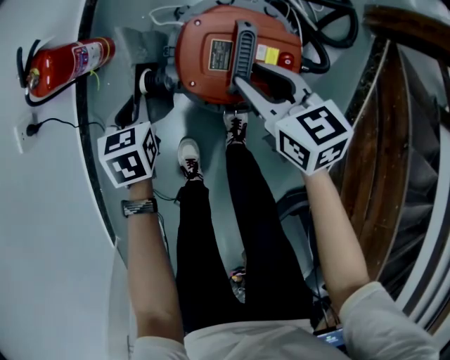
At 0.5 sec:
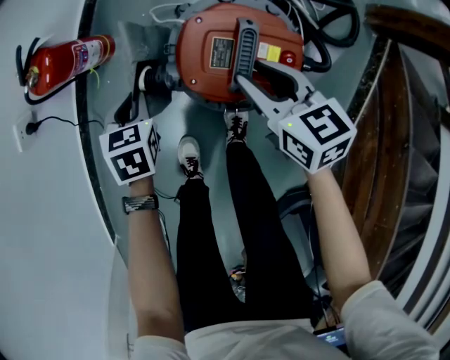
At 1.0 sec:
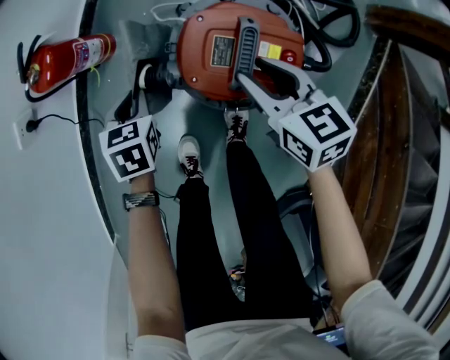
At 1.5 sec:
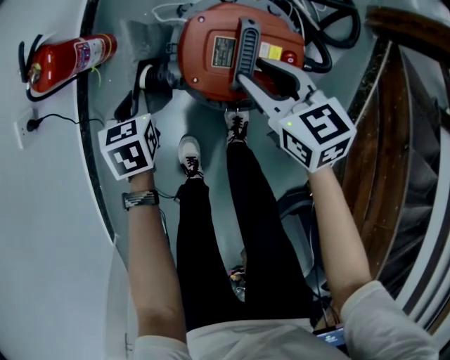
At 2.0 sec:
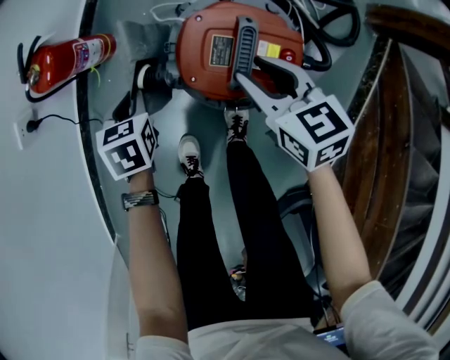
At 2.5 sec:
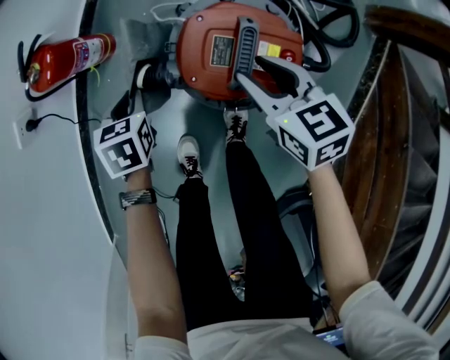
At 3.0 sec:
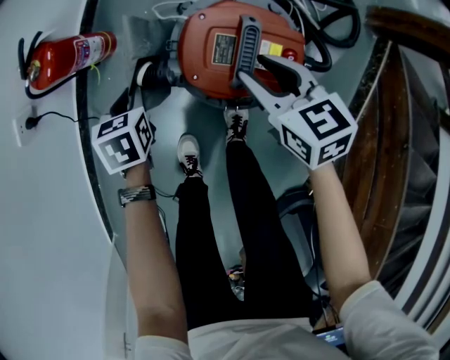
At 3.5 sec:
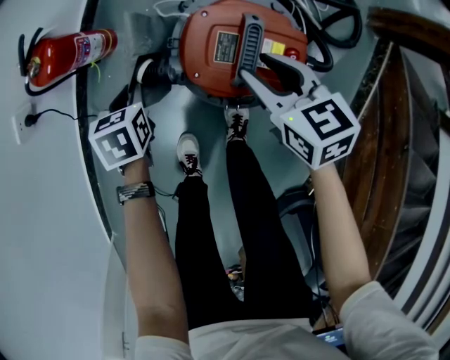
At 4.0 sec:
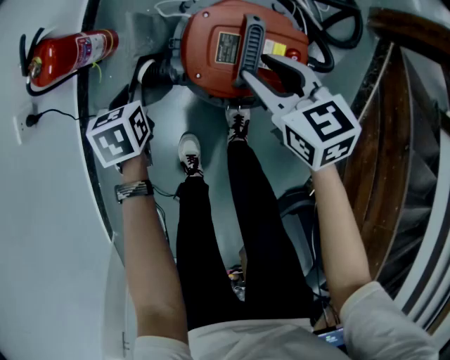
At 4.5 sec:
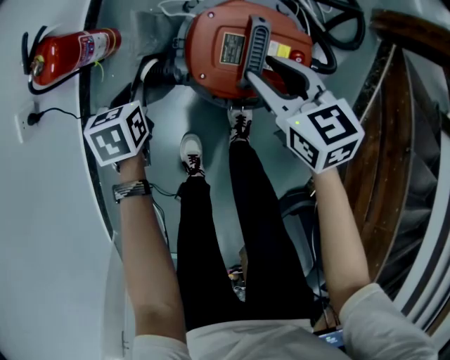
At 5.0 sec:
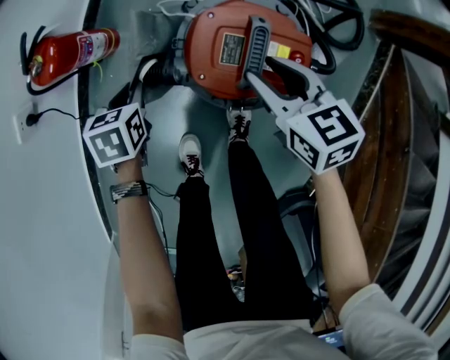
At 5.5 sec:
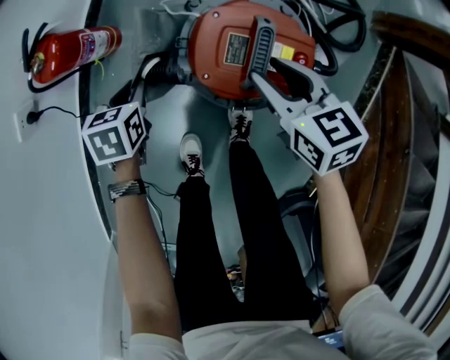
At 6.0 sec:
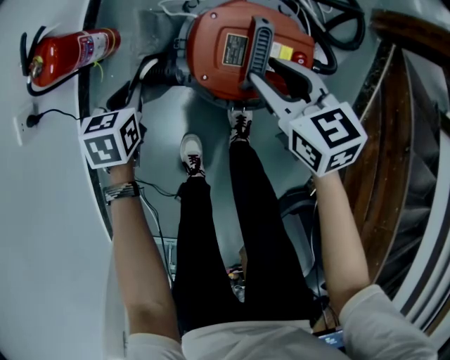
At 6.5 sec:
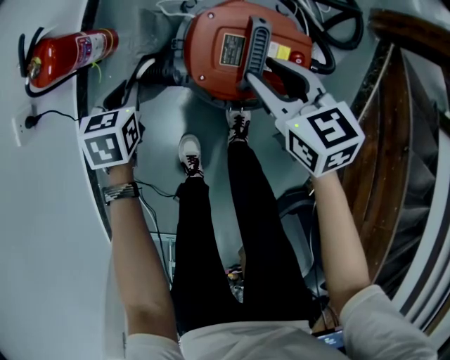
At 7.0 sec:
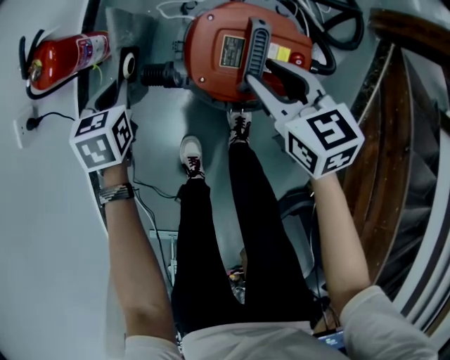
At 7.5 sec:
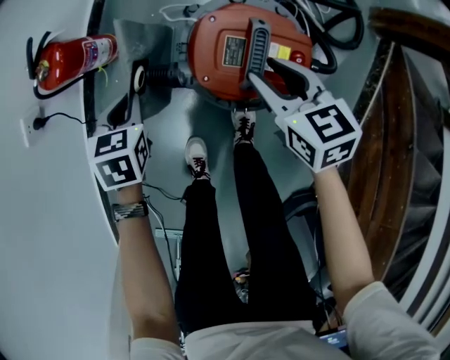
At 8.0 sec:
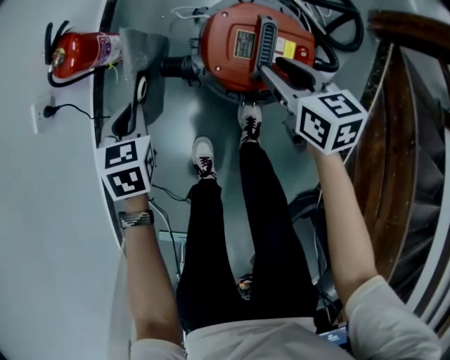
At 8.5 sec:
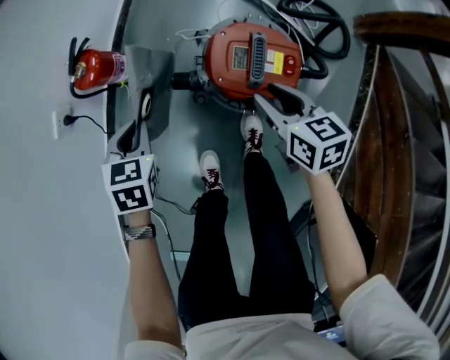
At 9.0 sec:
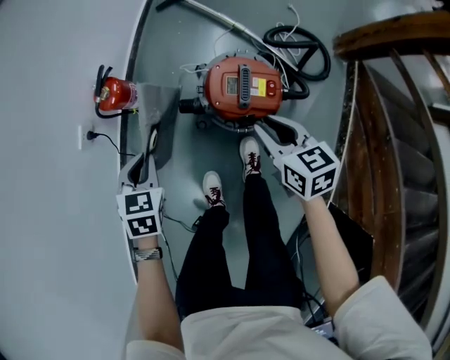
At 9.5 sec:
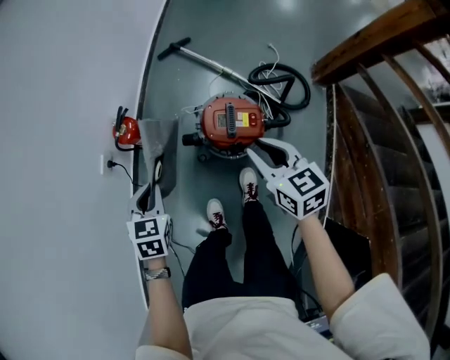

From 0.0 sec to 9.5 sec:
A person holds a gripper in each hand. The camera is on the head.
From 0.0 sec to 7.5 sec: There are only small adjustments of the grippers.
From 7.5 sec to 9.5 sec: Both grippers move upward, roughly 30 cm.

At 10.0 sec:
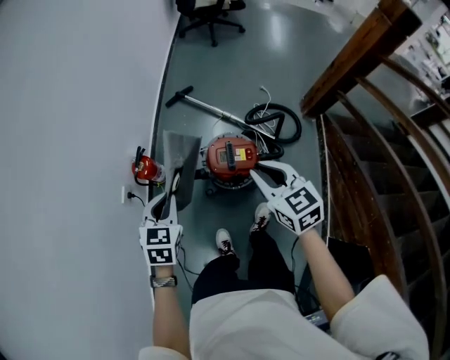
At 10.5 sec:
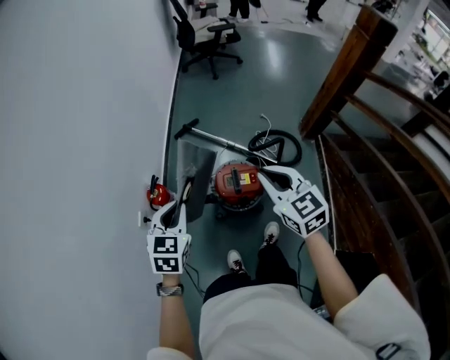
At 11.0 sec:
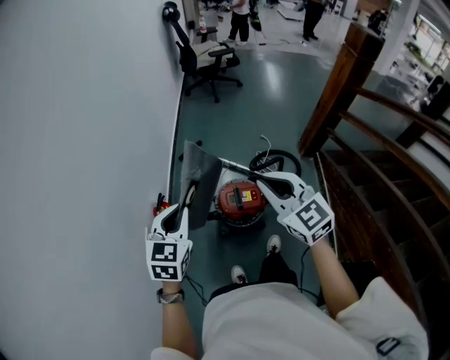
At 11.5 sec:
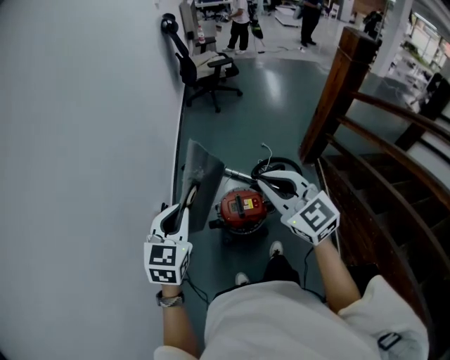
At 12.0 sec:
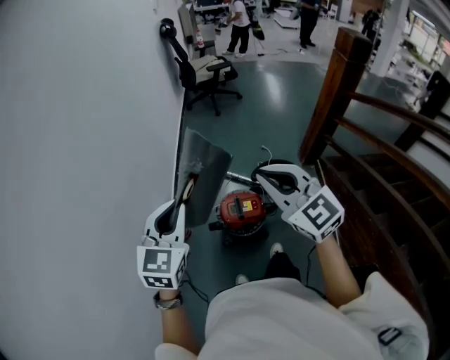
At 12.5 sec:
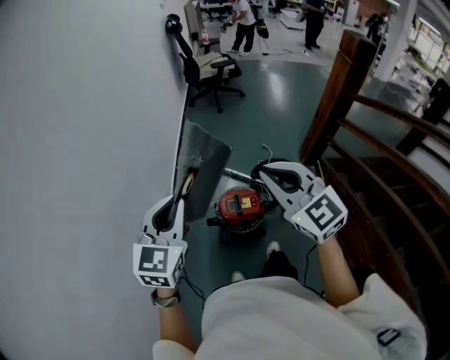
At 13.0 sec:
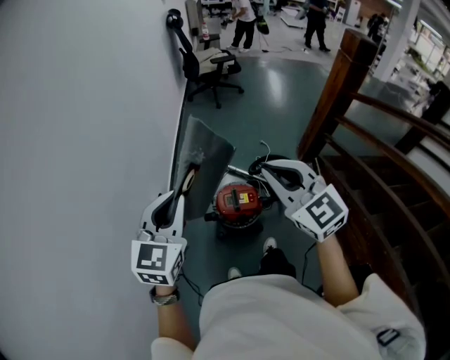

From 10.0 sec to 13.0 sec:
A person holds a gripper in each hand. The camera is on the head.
From 10.0 sec to 11.5 sec: The grippers both shift upward by roughly 25 cm. The right gripper turns by about 30 degrees; the left gripper rotates roughly 20 degrees.
From 11.5 sec to 13.0 sec: The left gripper moves upward, some 10 cm. The right gripper shifts by roughly 5 cm.

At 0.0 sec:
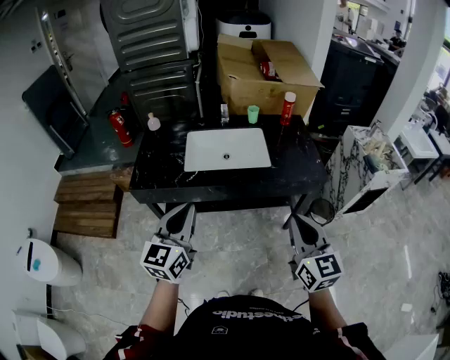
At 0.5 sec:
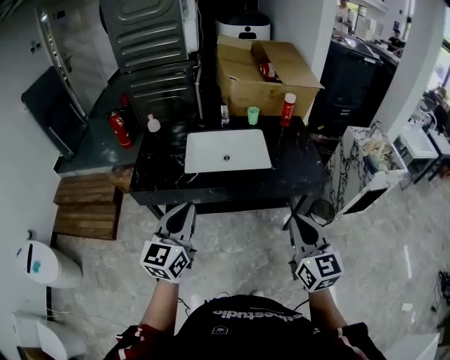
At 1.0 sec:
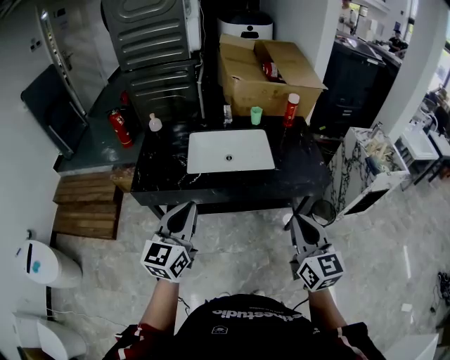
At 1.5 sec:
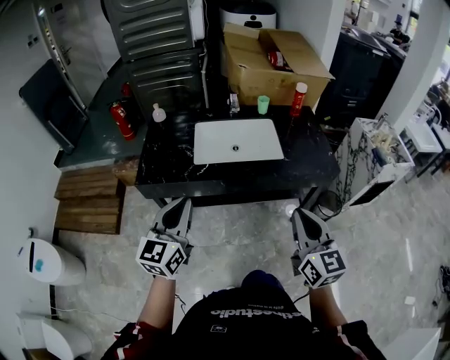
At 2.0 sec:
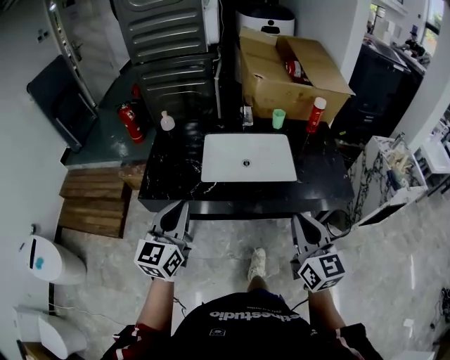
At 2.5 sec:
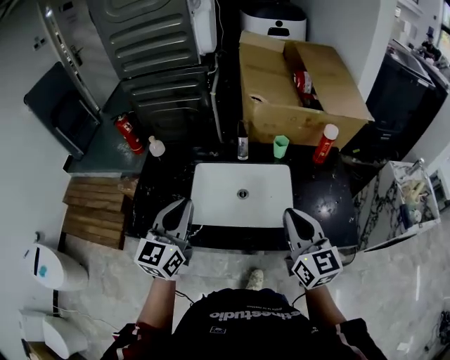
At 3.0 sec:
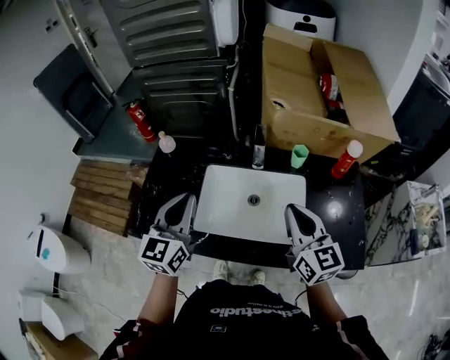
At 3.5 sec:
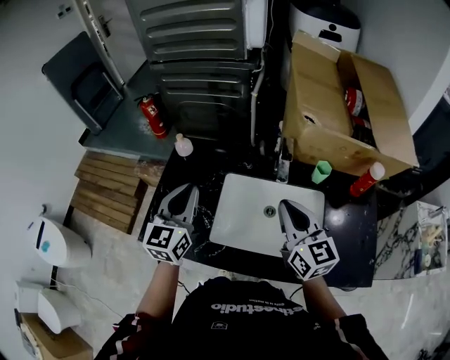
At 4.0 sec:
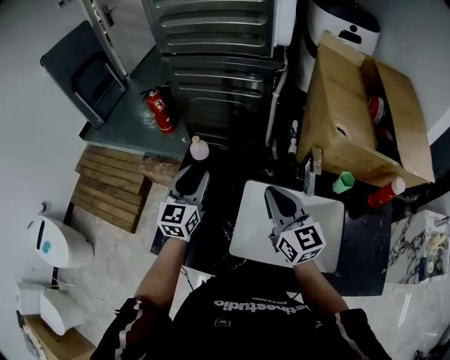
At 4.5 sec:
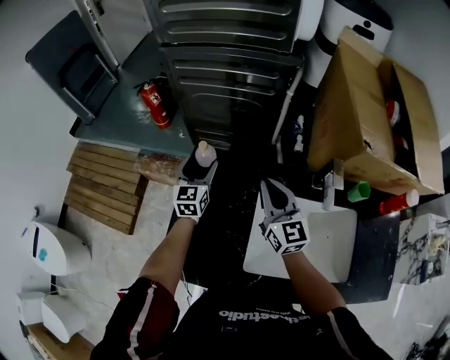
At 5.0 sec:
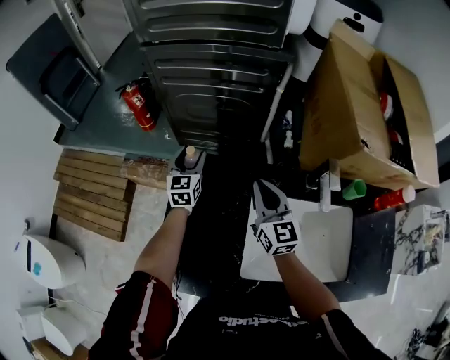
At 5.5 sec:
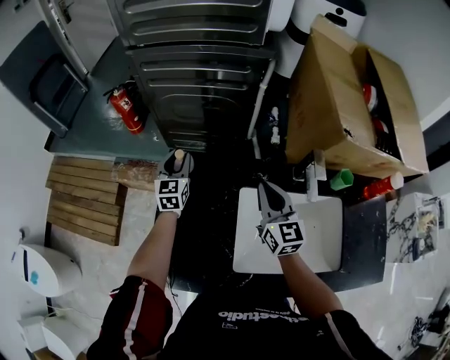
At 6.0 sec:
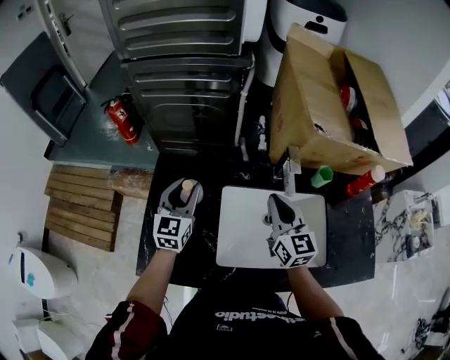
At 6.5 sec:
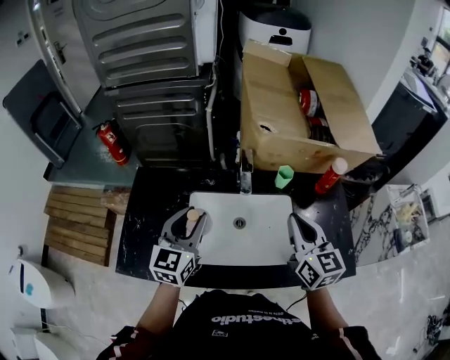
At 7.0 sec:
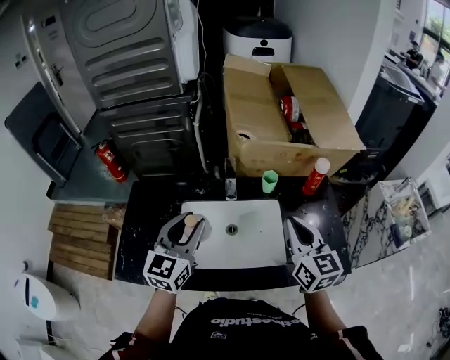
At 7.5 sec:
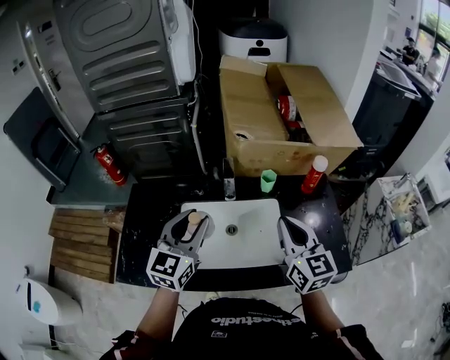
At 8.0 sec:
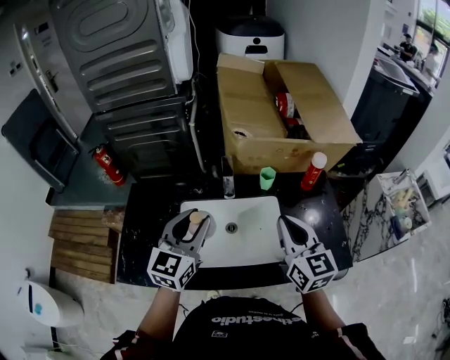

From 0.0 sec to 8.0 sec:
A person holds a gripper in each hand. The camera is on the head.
From 0.0 sec to 2.0 sec: The two grippers go some 15 cm forward and to the left.
From 2.0 sec to 4.0 sec: Both grippers are carried forward, approximately 50 cm. The left gripper opens its fingers. Meanwhile the right gripper swivels approximately 20 degrees.
From 4.0 sec to 6.0 sec: The right gripper travels to the right and downward by roughly 10 cm. The left gripper goes about 5 cm downward, travels forward and back again, approximately 20 cm each way, and opens, then closes again.
From 6.0 sec to 8.0 sec: The right gripper is displaced to the right, backward and upward by some 30 cm, while the left gripper moves to the right, upward and backward, some 30 cm.

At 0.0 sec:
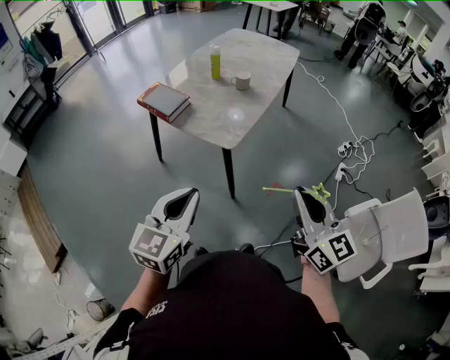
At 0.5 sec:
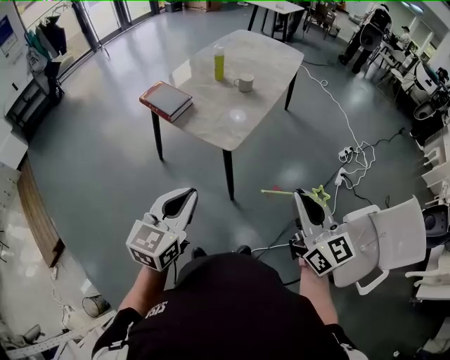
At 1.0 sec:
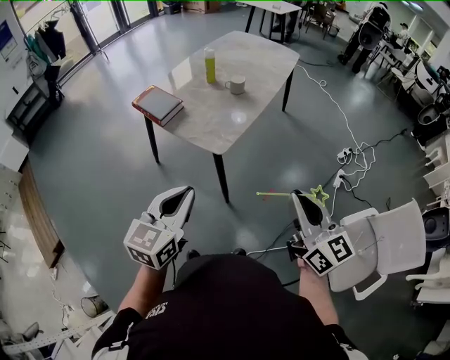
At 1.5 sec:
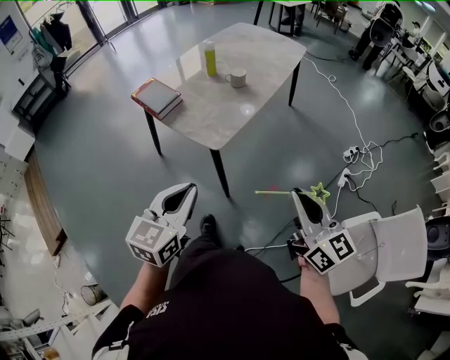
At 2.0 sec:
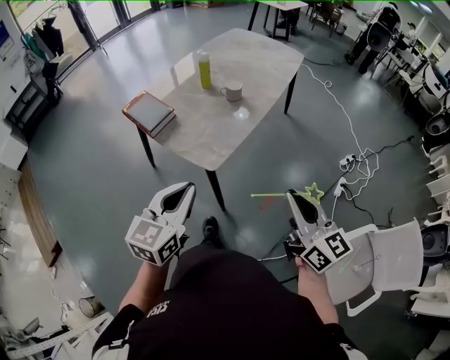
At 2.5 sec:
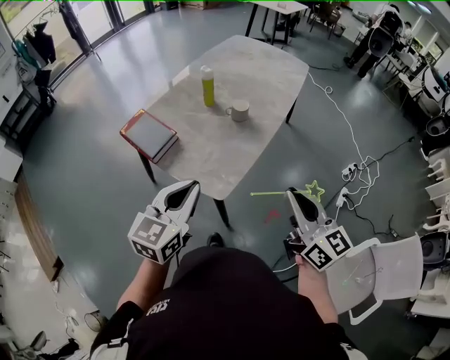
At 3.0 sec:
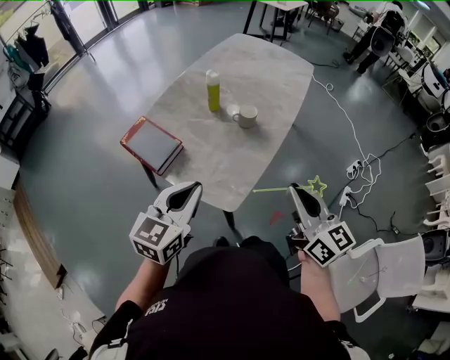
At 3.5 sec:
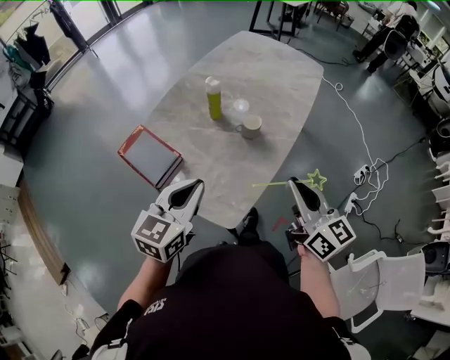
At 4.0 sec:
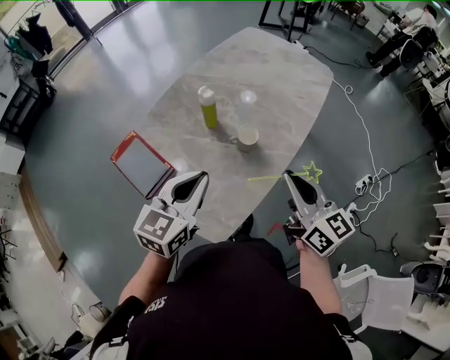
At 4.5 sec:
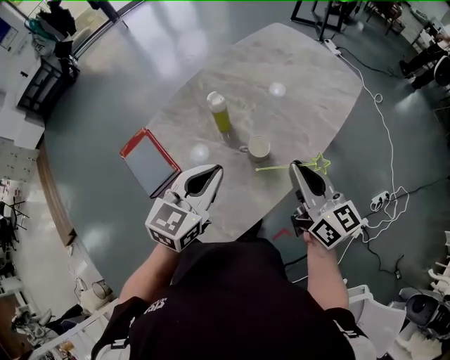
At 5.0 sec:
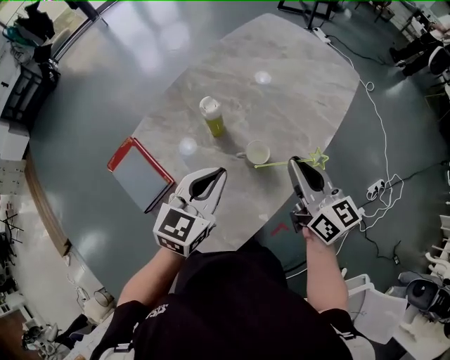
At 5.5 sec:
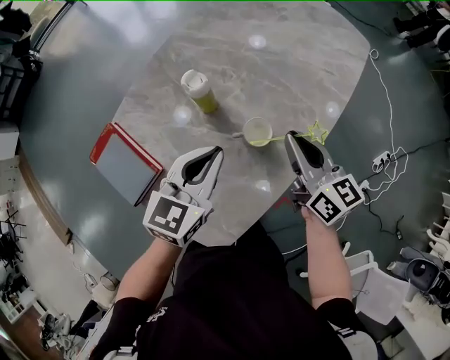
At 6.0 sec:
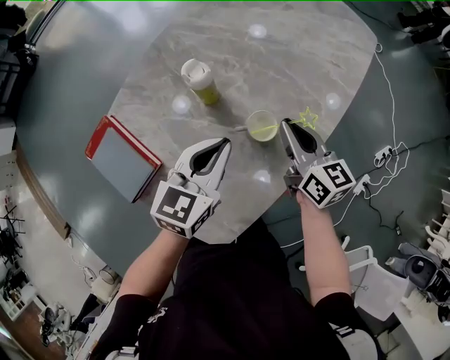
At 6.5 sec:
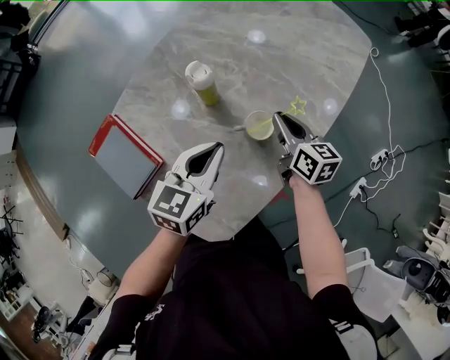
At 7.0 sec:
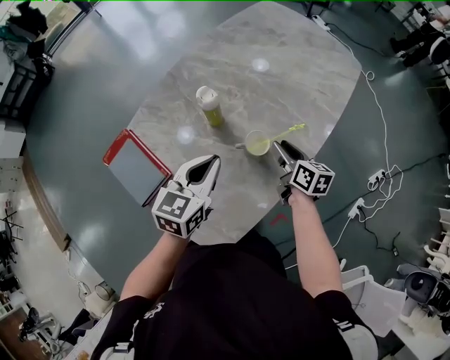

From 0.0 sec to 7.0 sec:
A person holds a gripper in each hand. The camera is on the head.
From 0.0 sec to 2.0 sec: The two grippers go about 15 cm forward and to the right.
From 2.0 sec to 3.5 sec: Both grippers move forward, some 30 cm.
From 3.5 sec to 5.0 sec: The left gripper shifts approximately 20 cm forward and to the right, while the right gripper goes approximately 25 cm forward.
From 5.0 sec to 7.0 sec: The right gripper travels downward by about 20 cm, changes its angle by roughly 30 degrees, and opens, while the left gripper shifts roughly 5 cm downward.
